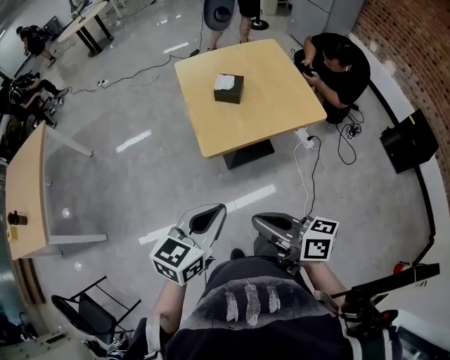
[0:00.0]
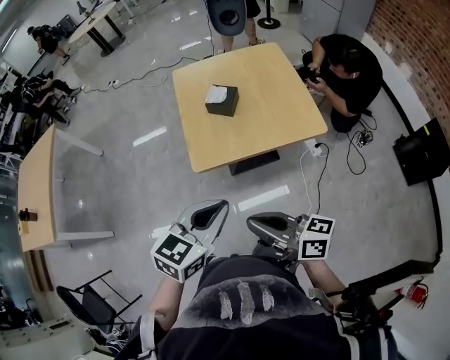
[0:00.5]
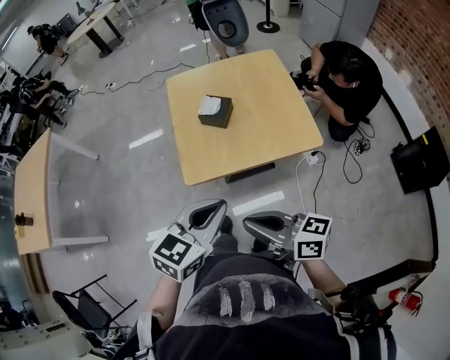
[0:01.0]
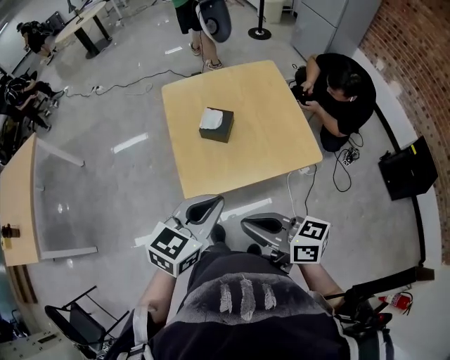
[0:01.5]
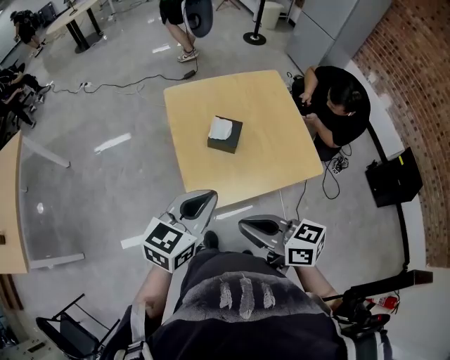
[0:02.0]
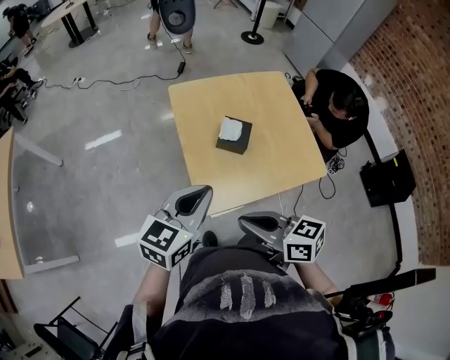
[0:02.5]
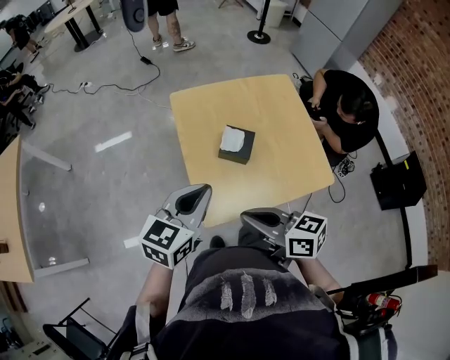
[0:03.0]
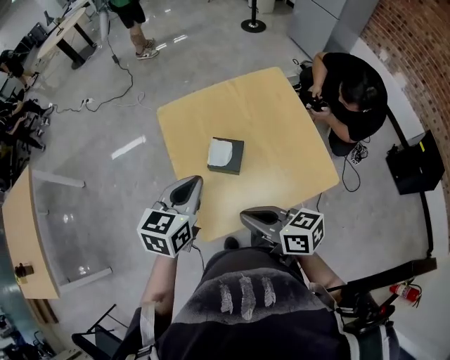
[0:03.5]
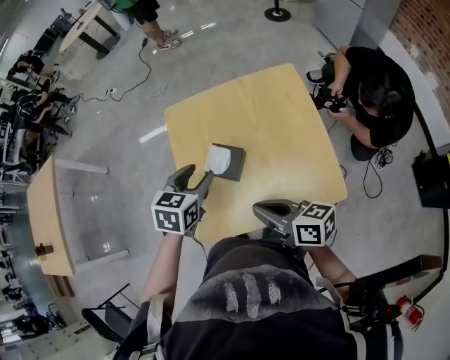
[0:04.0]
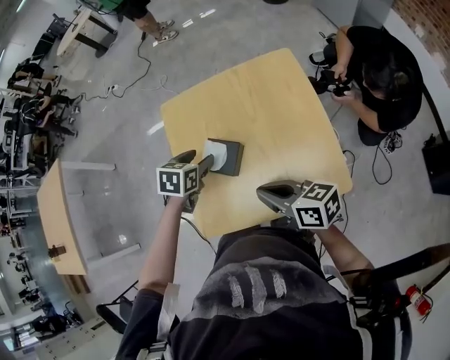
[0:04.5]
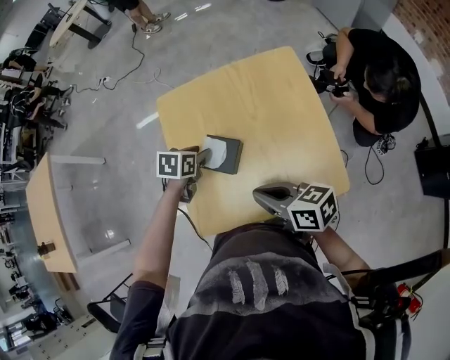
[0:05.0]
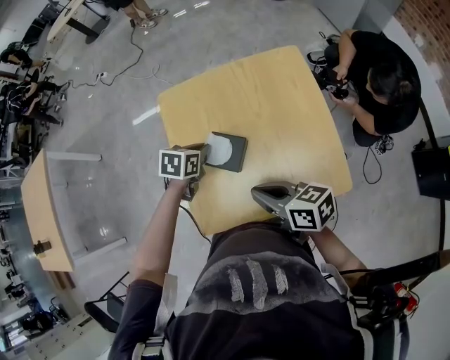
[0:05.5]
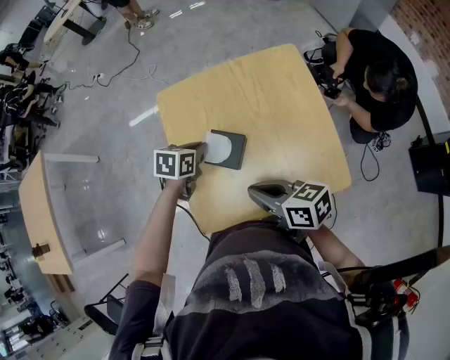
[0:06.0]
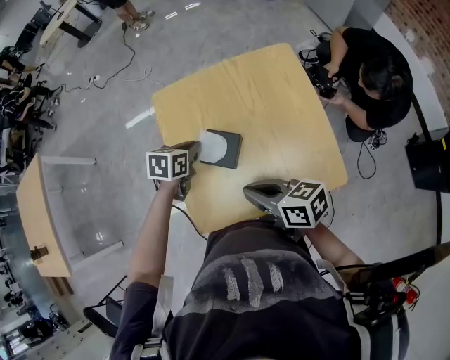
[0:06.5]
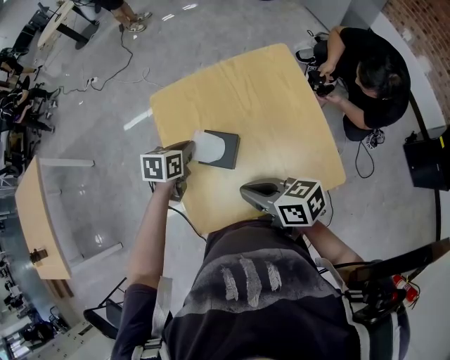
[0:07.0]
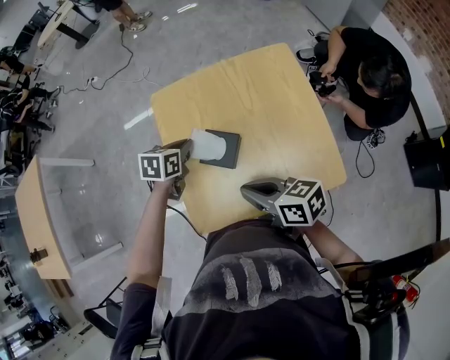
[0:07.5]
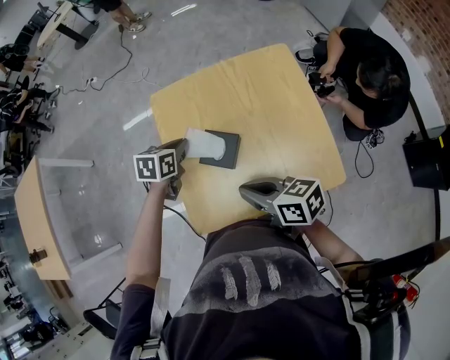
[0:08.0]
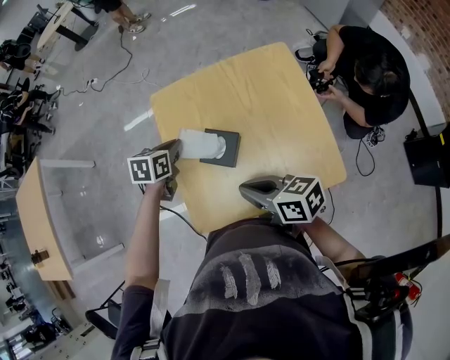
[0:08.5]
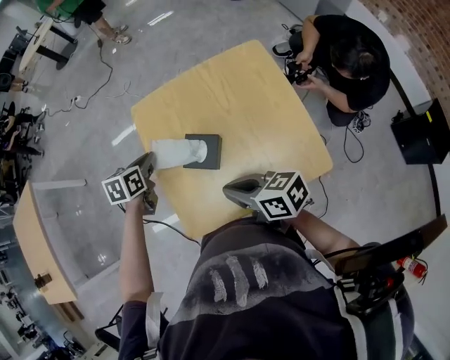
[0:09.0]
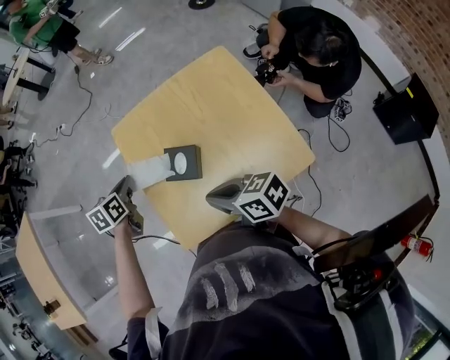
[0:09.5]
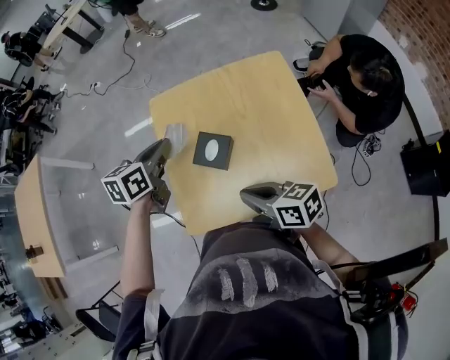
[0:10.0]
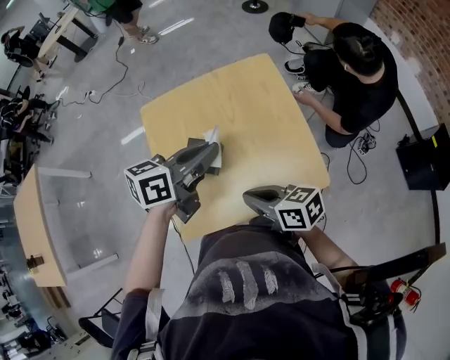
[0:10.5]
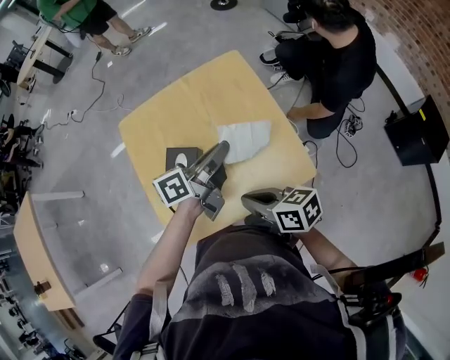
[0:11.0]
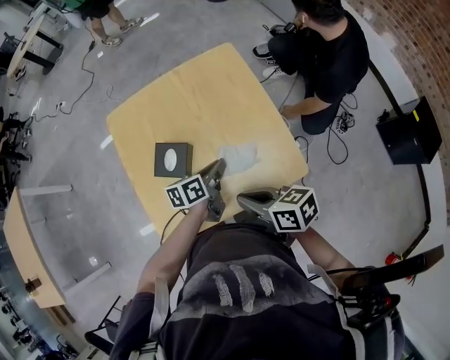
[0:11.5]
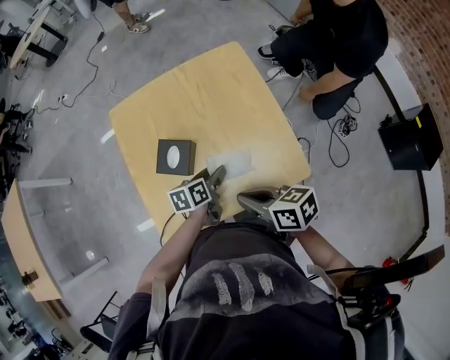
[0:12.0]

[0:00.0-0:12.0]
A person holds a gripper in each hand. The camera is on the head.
0:00.0 to 0:02.0: The grippers both shift forward by about 25 cm.
0:02.0 to 0:04.0: The right gripper travels forward and to the right by approximately 20 cm. The left gripper heads forward and downward, covering about 25 cm, swivels about 30 degrees, and opens.
0:04.0 to 0:06.0: The left gripper travels downward and forward by roughly 15 cm, and closes up. Meanwhile the right gripper shifts by approximately 5 cm.
0:06.0 to 0:08.0: There are only small adjustments of the grippers.
0:08.0 to 0:10.0: The left gripper goes roughly 10 cm upward, and turns by approximately 20 degrees.
0:10.0 to 0:12.0: The right gripper heads to the right, covering about 10 cm. Meanwhile the left gripper goes some 30 cm downward, to the right and backward, rotates about 20 degrees, and opens up.

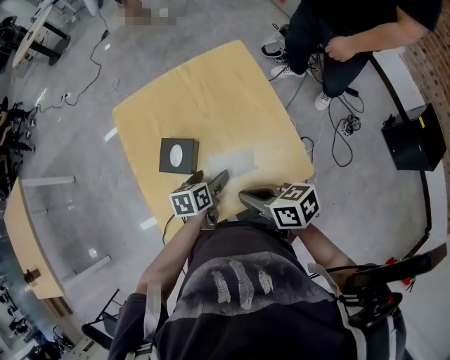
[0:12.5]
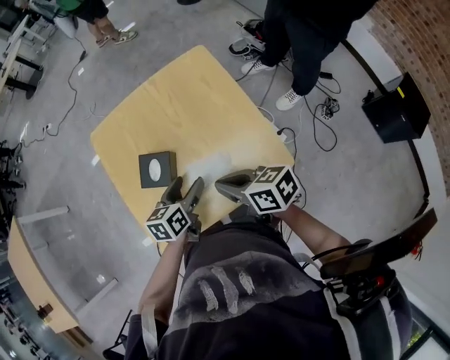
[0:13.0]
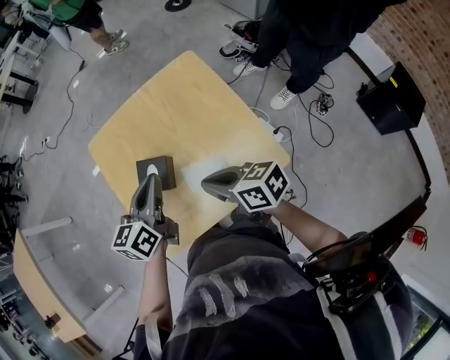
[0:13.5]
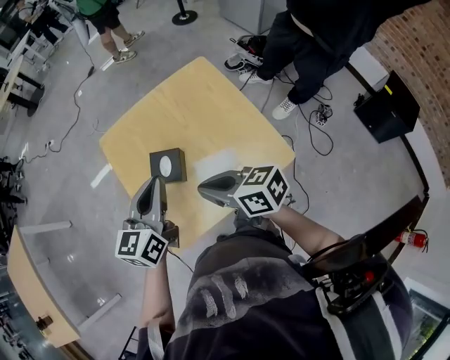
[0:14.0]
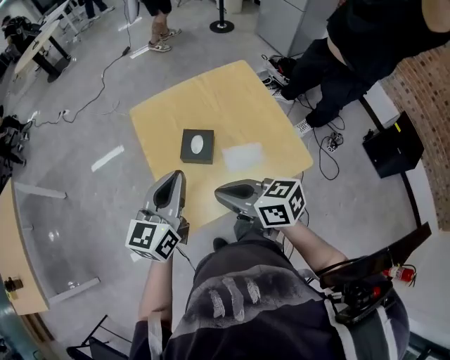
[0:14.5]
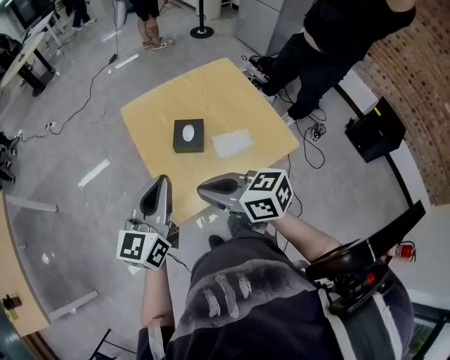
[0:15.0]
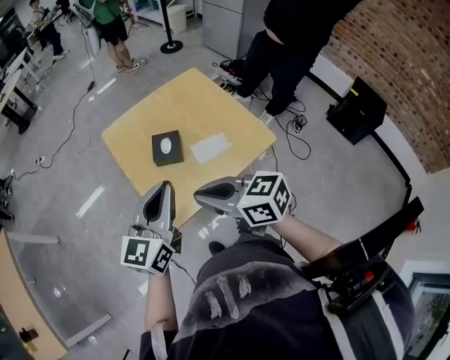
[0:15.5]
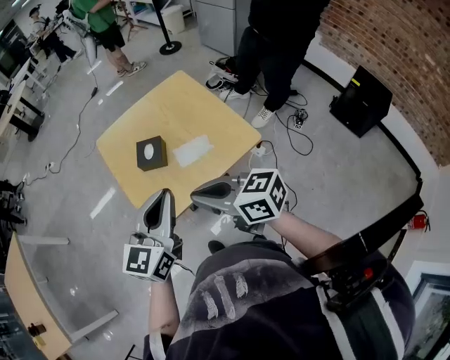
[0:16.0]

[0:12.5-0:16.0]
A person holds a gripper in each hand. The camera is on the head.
0:12.5 to 0:14.5: The right gripper goes roughly 15 cm to the left and upward; the left gripper shifts some 30 cm upward and to the left, tilts its fingers roughly 40 degrees upward, and closes.
0:14.5 to 0:16.0: The left gripper travels backward and to the right by about 15 cm. Meanwhile the right gripper is displaced backward, upward and to the right by approximately 15 cm.

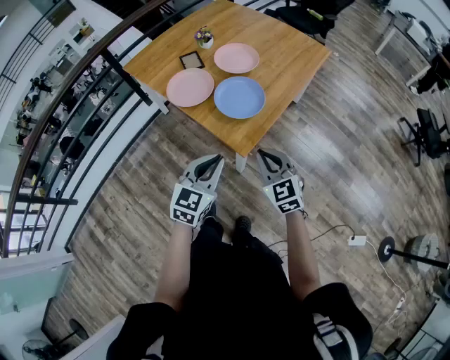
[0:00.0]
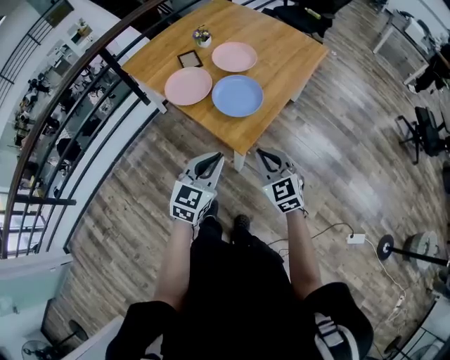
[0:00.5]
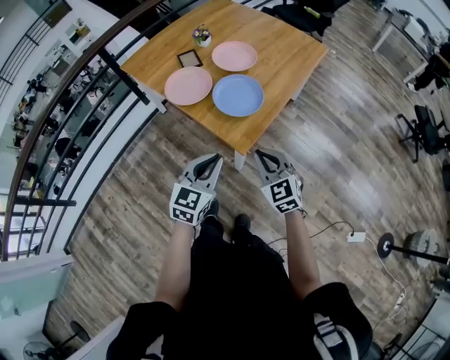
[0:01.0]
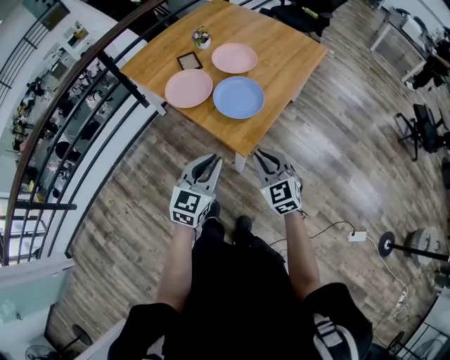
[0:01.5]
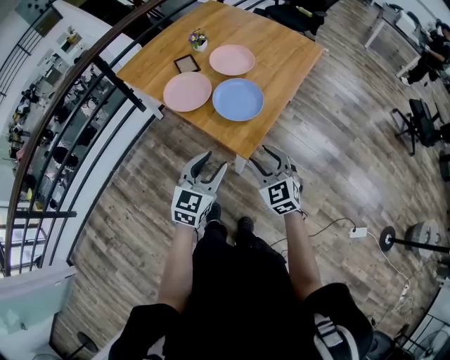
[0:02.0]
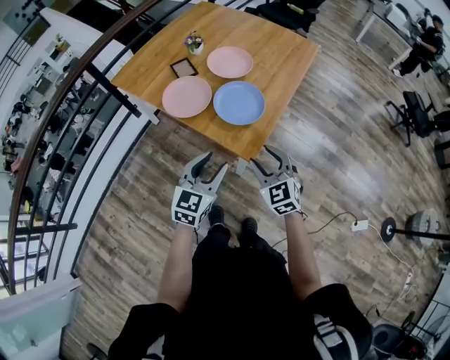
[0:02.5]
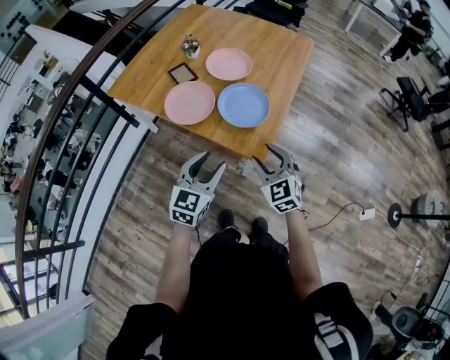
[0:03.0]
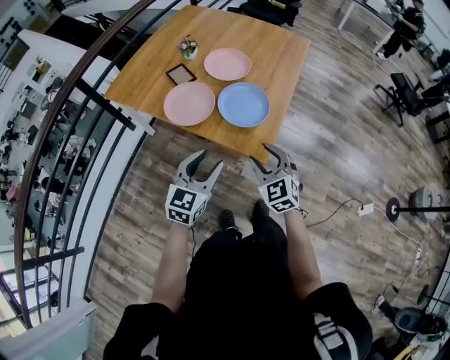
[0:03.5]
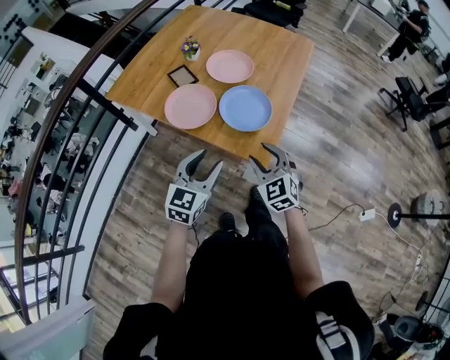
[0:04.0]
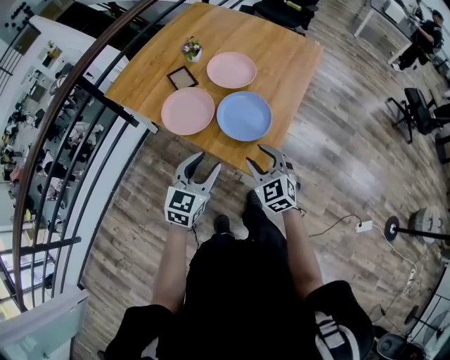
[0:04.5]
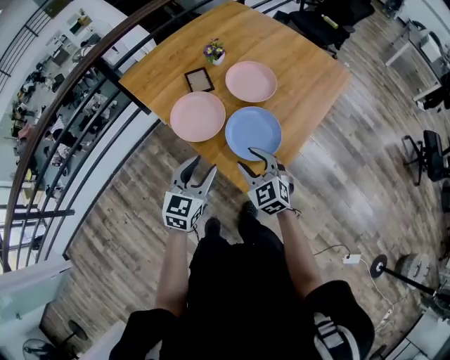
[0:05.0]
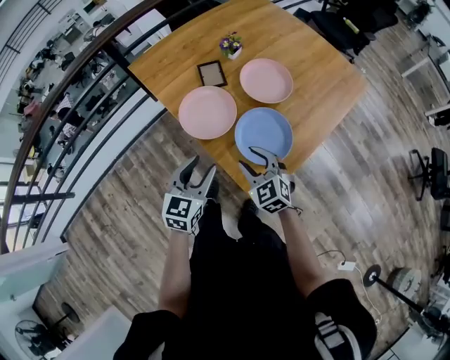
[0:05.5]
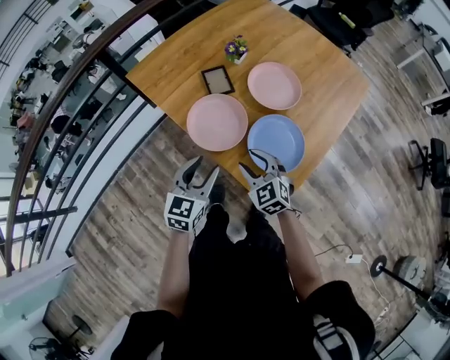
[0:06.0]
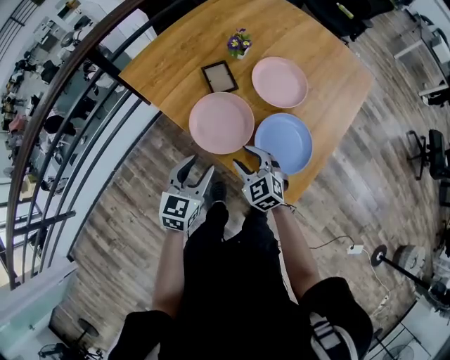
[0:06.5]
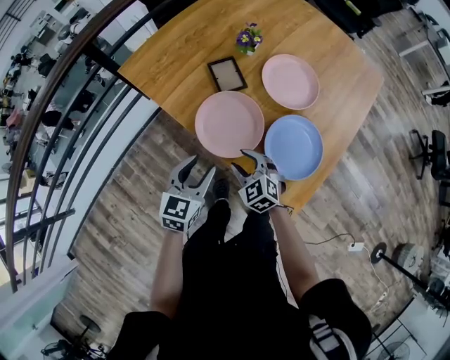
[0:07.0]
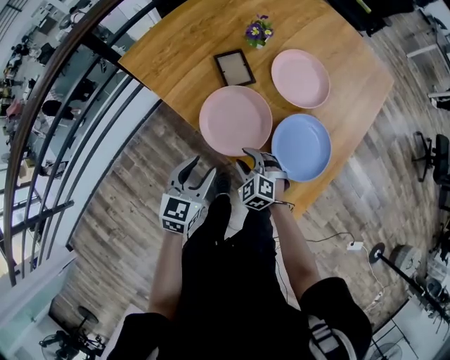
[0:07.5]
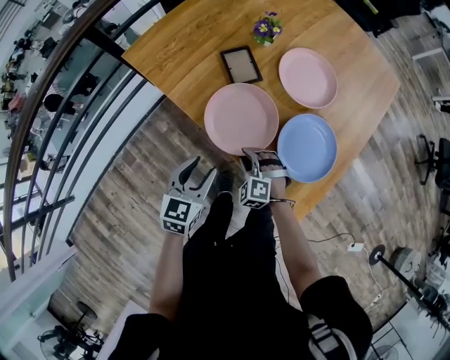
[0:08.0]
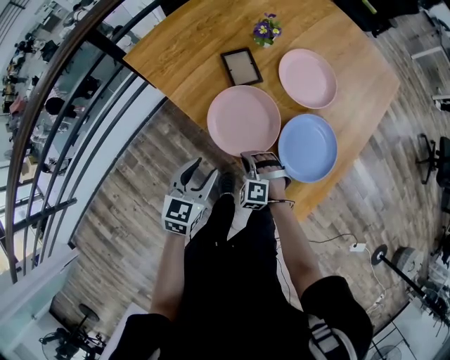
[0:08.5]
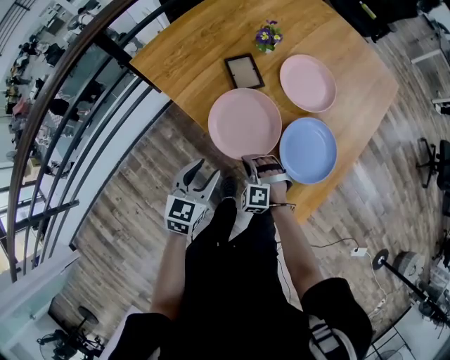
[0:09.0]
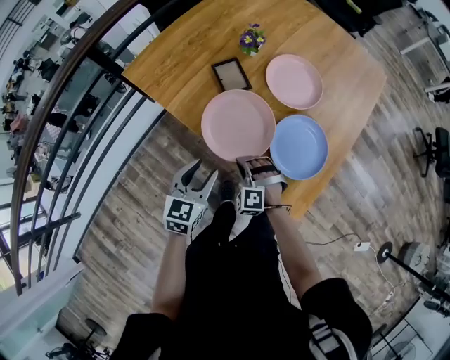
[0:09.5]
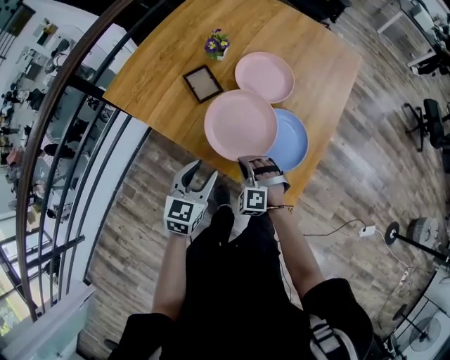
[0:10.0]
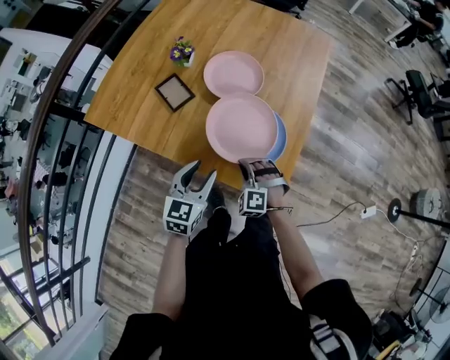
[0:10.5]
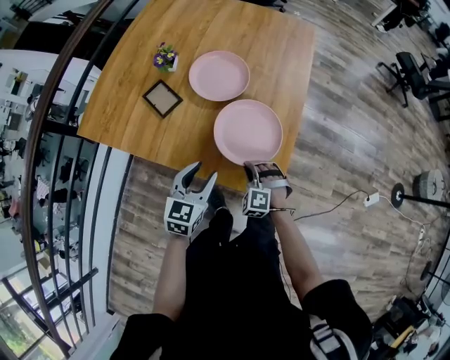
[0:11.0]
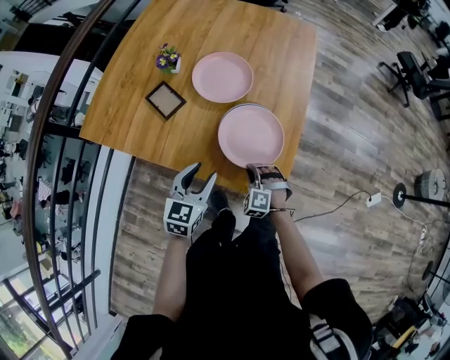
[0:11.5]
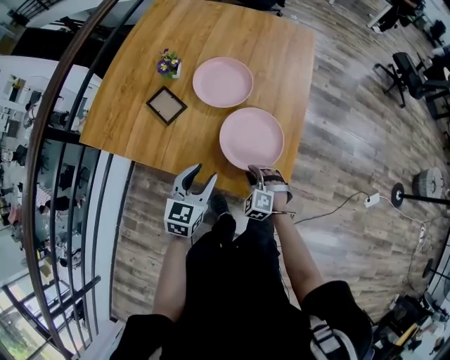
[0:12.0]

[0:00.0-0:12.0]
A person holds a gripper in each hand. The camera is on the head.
0:00.0 to 0:02.0: The left gripper opens its fingers. Meanwhile the right gripper opens.
0:02.0 to 0:04.0: Both grippers travel together to the left and forward, some 10 cm.
0:04.0 to 0:06.0: The right gripper ends up approximately 20 cm from where it was, and turns by some 20 degrees, while the left gripper shifts by some 15 cm, and swivels about 20 degrees.
0:06.0 to 0:08.0: The grippers both shift downward and to the left by approximately 15 cm. The right gripper turns by about 40 degrees, and closes up.
0:08.0 to 0:10.0: The right gripper goes approximately 10 cm upward and to the right, and closes up. The left gripper heads to the right, covering about 5 cm.
0:10.0 to 0:12.0: The left gripper moves to the right, roughly 5 cm. The right gripper moves to the right and downward, some 15 cm, changes its angle by about 30 degrees, and opens up.
